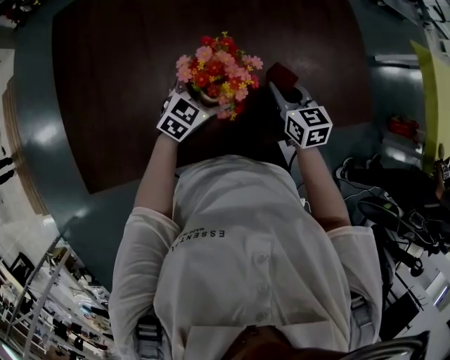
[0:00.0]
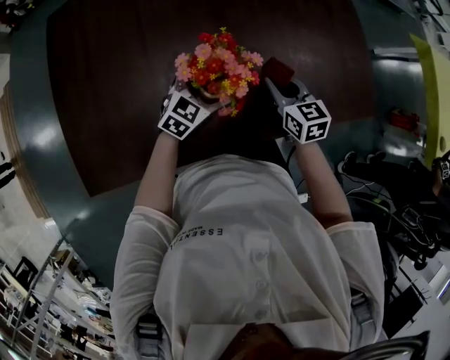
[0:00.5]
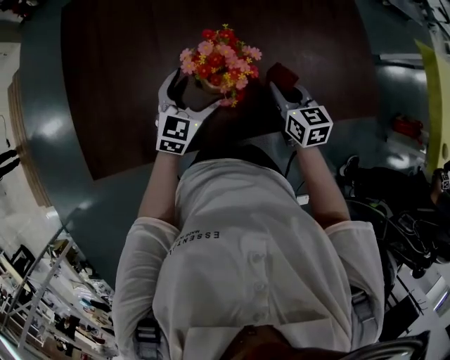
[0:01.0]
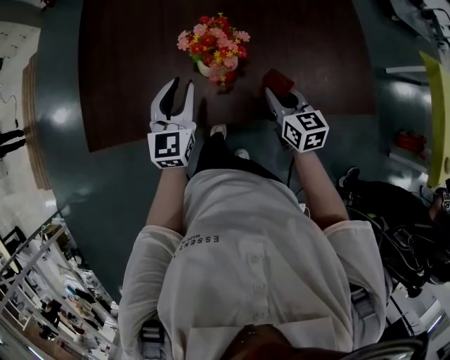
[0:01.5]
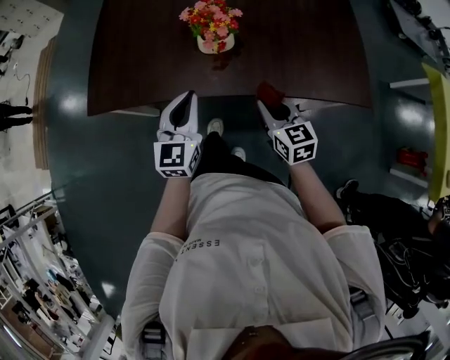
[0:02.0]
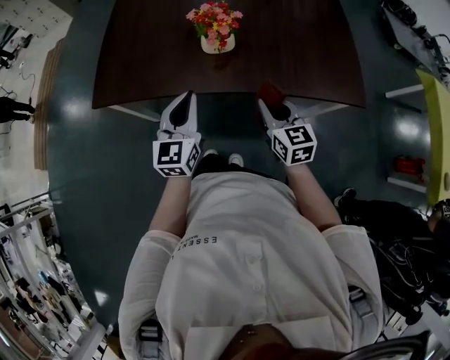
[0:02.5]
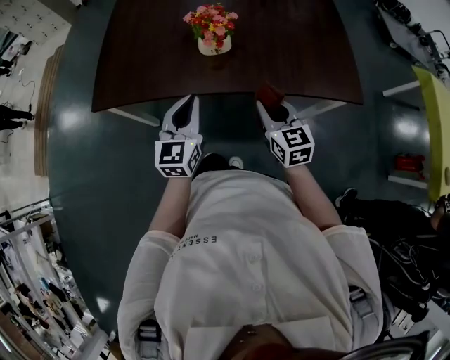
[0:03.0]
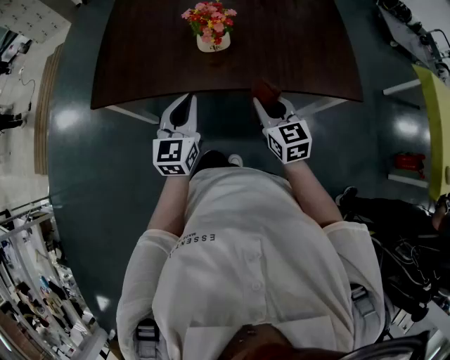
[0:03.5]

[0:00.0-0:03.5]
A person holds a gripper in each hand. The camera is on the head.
0:00.0 to 0:02.0: The left gripper moves roughly 25 cm, changes its angle by roughly 50 degrees, and closes its fingers, while the right gripper ends up approximately 20 cm from where it was.
0:02.0 to 0:03.5: The right gripper changes place by some 5 cm. The left gripper heads backward, covering about 5 cm.

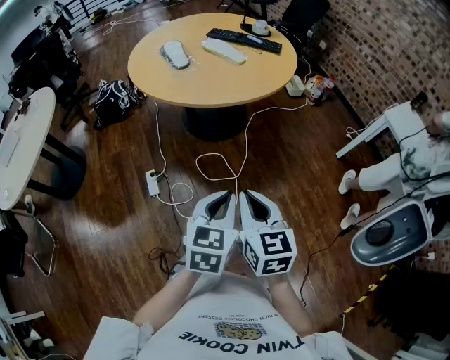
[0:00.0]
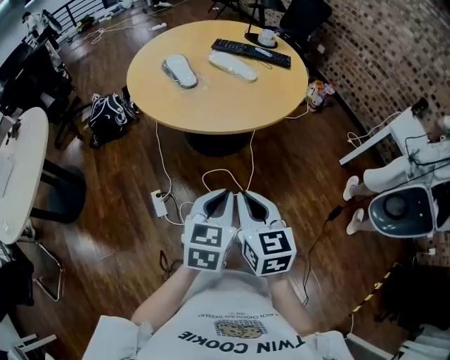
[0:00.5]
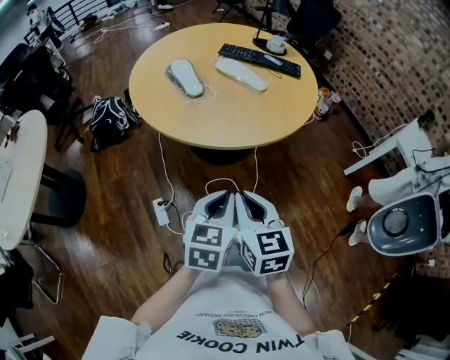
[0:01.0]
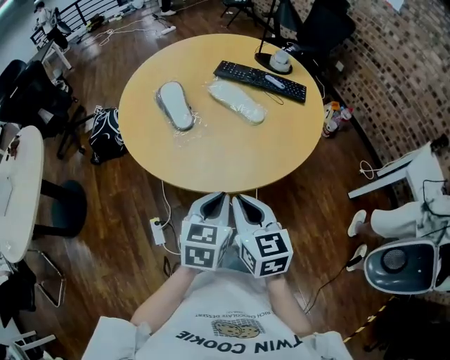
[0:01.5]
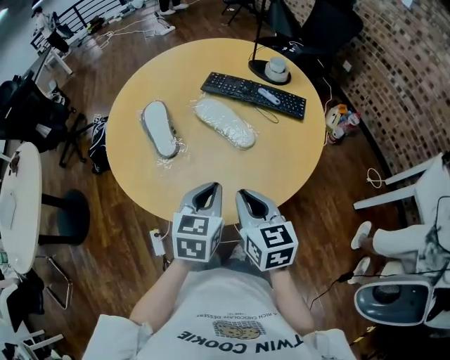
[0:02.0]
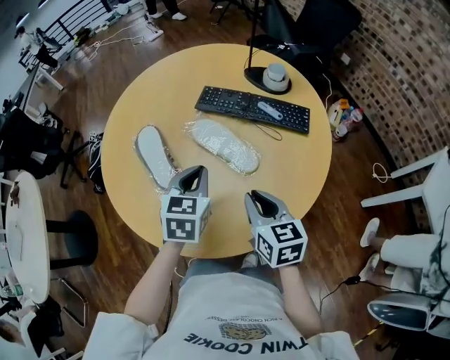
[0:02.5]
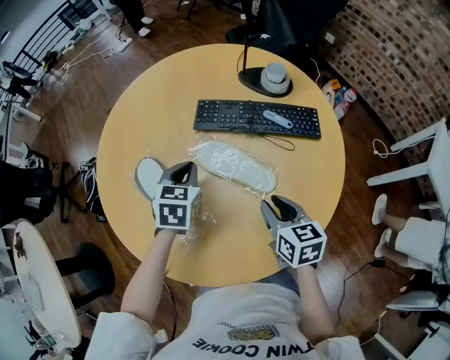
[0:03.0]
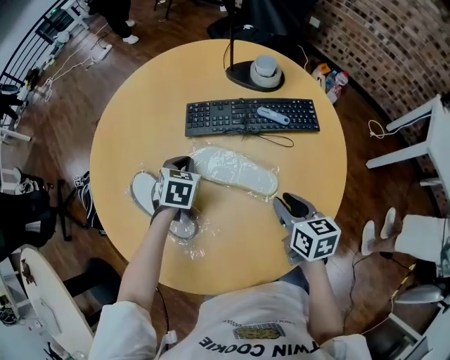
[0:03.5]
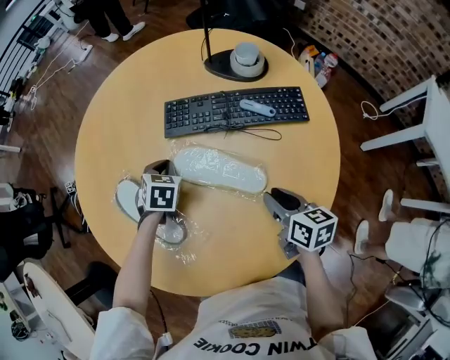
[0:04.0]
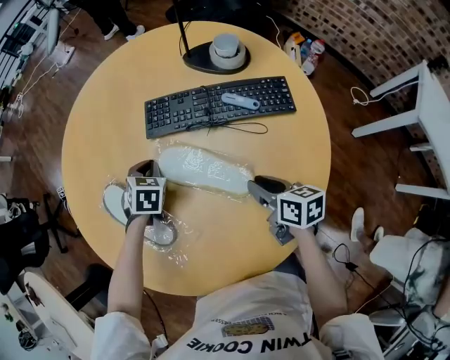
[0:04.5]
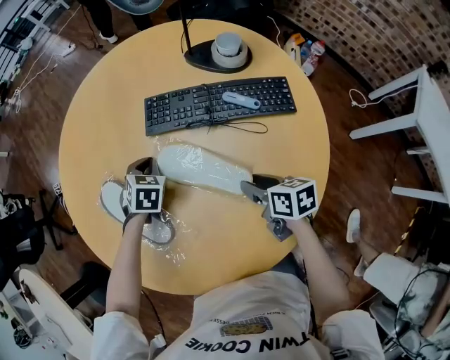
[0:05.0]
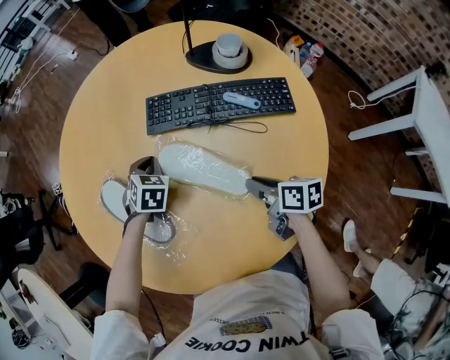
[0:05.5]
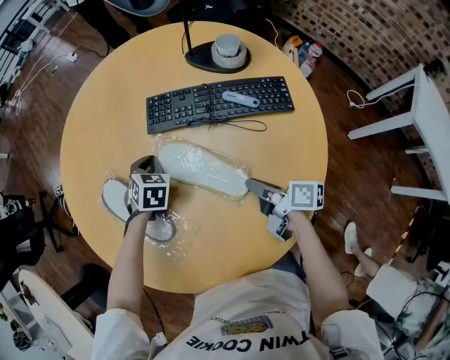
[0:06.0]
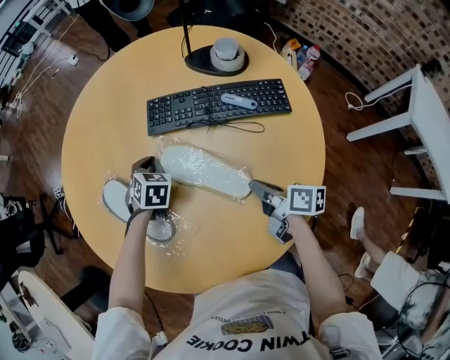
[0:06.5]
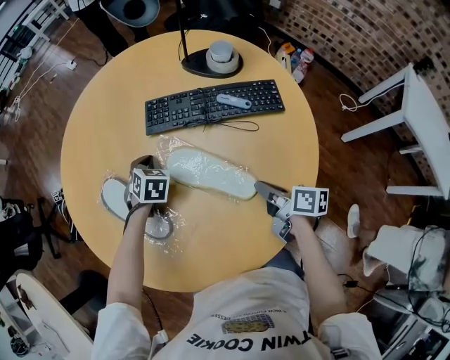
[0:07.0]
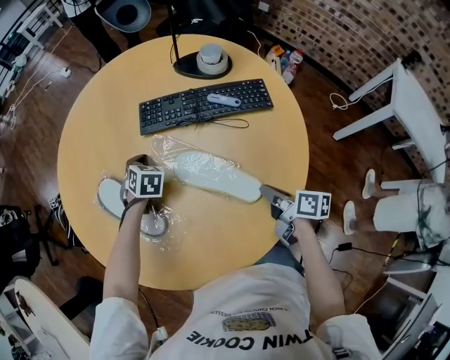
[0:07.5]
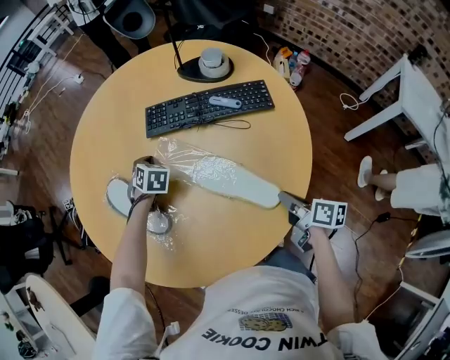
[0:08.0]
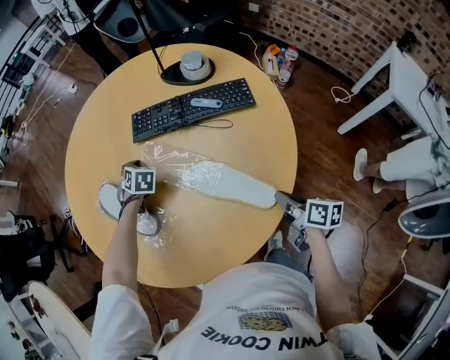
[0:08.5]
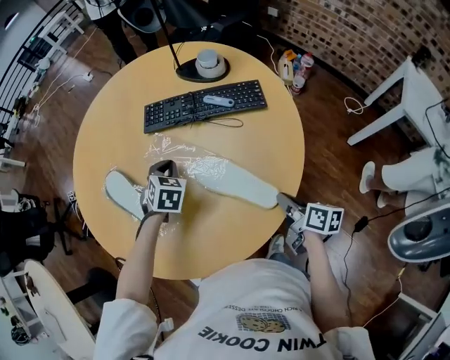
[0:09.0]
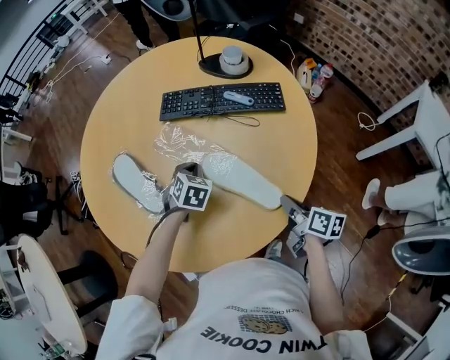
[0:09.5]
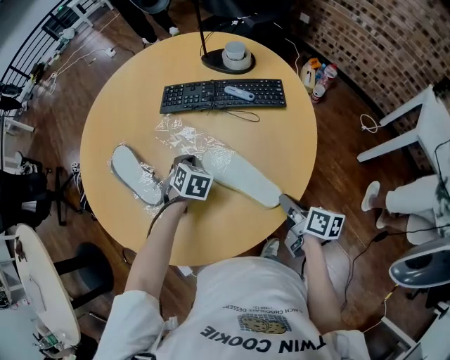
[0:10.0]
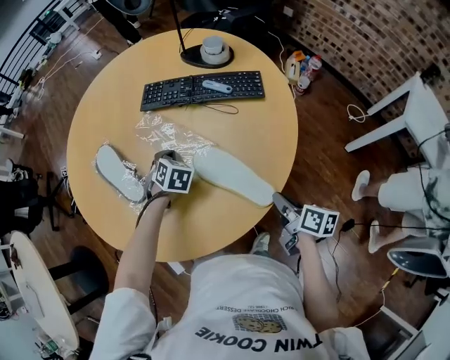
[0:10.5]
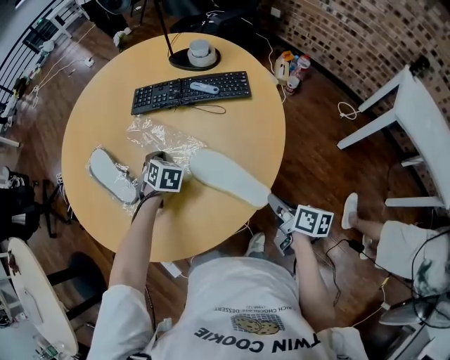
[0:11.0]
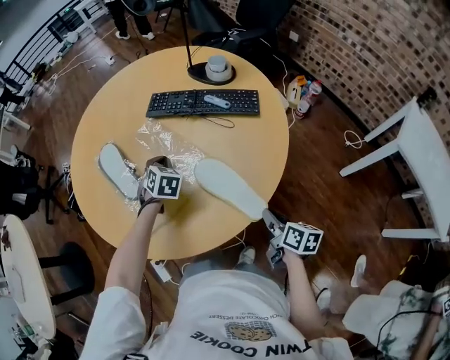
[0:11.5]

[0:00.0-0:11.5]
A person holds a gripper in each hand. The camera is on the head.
0:00.0 to 0:02.0: Both grippers are carried forward, approximately 50 cm.
0:02.0 to 0:04.0: The left gripper travels forward and downward by approximately 40 cm, and changes its angle by approximately 40 degrees, while the right gripper shifts some 25 cm forward and downward, rotates approximately 30 degrees, and opens up.
0:04.0 to 0:06.0: The right gripper swivels roughly 40 degrees.
0:06.0 to 0:07.5: The right gripper goes approximately 10 cm backward.
0:07.5 to 0:09.5: The right gripper travels backward by roughly 5 cm; the left gripper travels backward and to the right by some 15 cm.
0:09.5 to 0:11.5: The right gripper travels backward by approximately 10 cm.

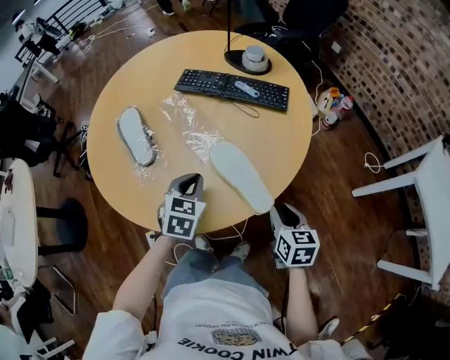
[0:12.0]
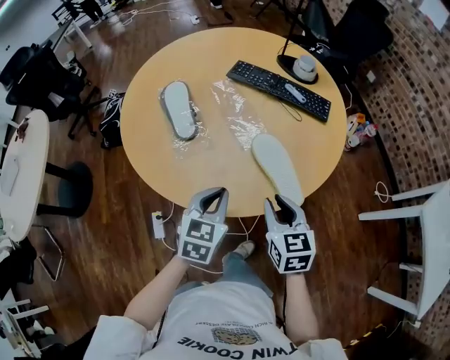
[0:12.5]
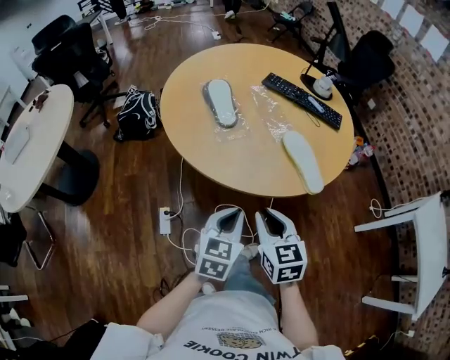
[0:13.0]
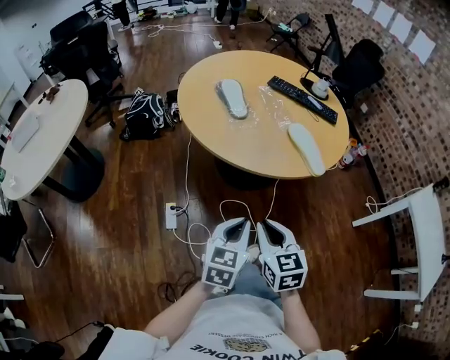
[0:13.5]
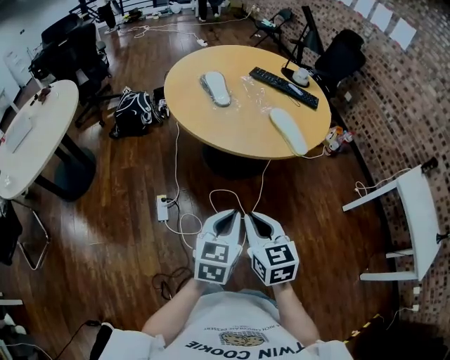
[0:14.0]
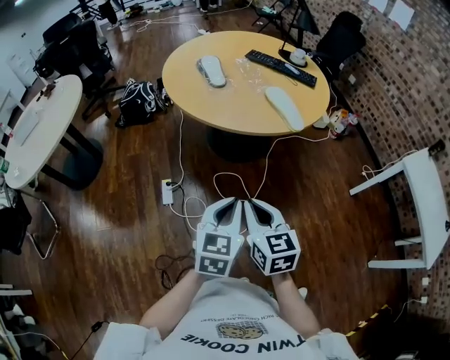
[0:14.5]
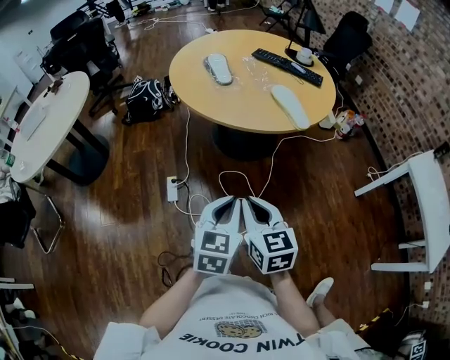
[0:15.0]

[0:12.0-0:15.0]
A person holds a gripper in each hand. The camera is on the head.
0:12.0 to 0:13.5: The pair of grippers is taken backward and to the left, about 40 cm. The left gripper changes its angle by about 30 degrees, while the right gripper turns by roughly 30 degrees.
0:13.5 to 0:15.0: The two grippers go about 15 cm backward.

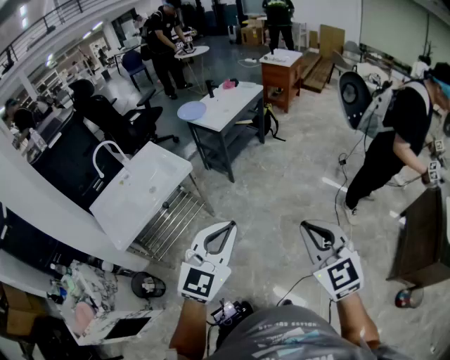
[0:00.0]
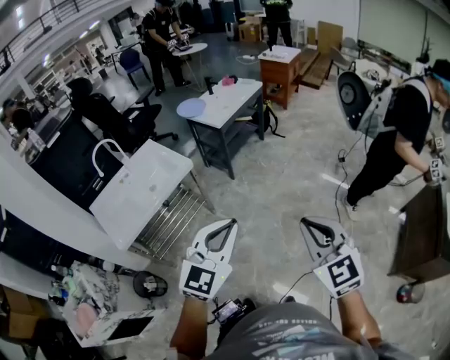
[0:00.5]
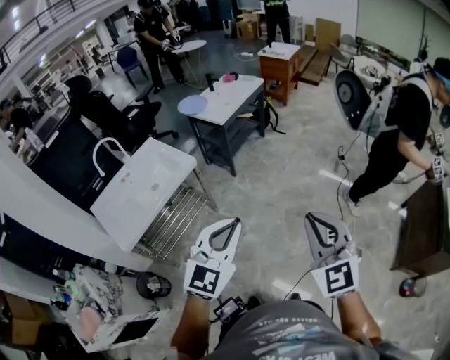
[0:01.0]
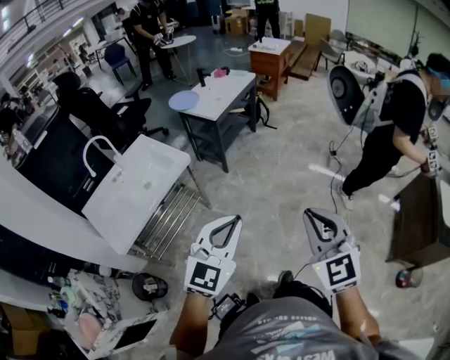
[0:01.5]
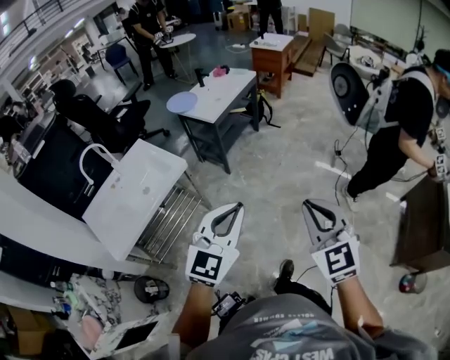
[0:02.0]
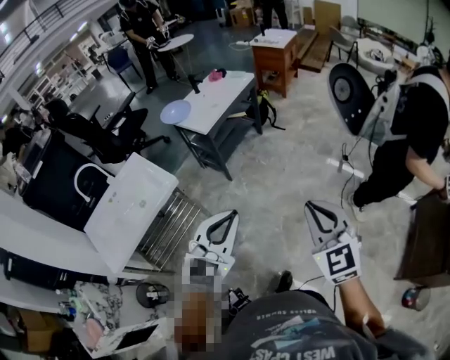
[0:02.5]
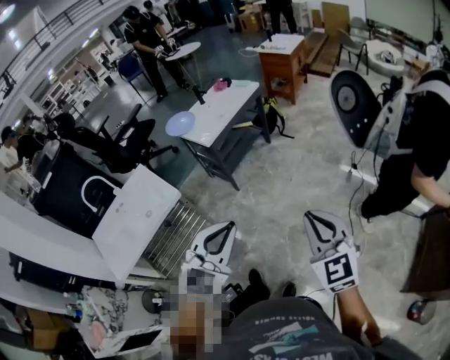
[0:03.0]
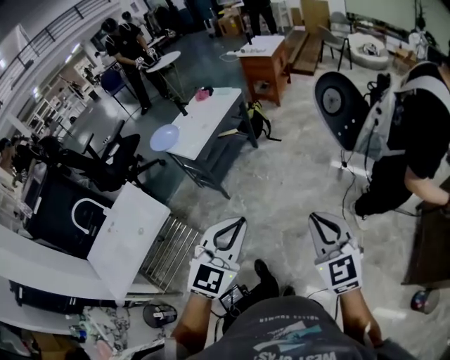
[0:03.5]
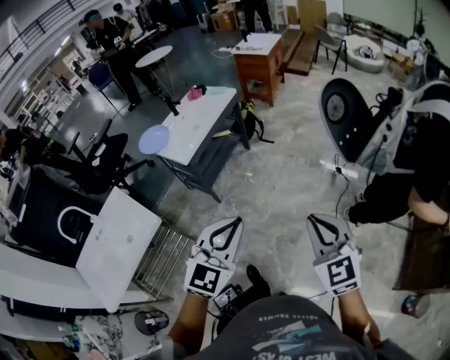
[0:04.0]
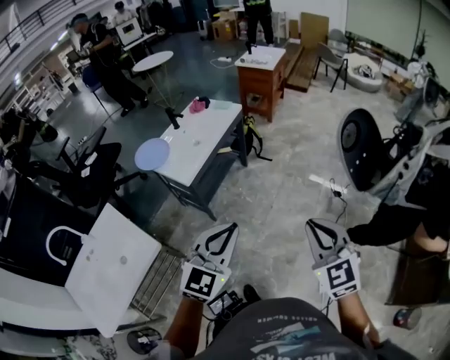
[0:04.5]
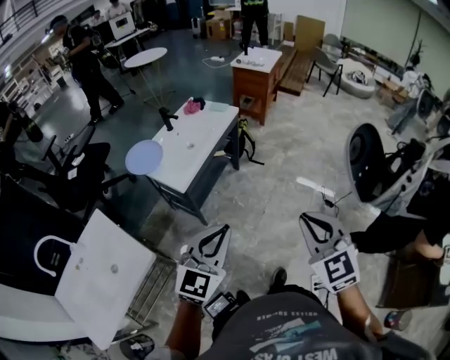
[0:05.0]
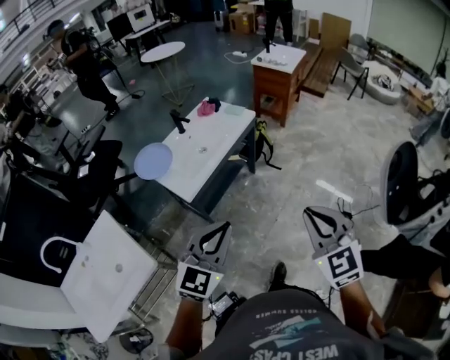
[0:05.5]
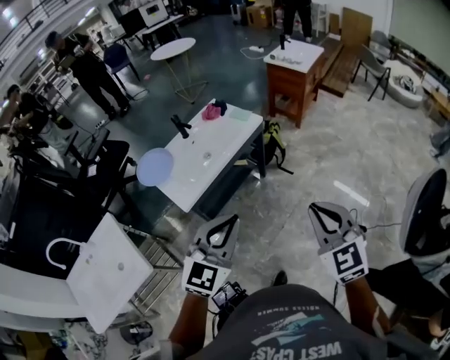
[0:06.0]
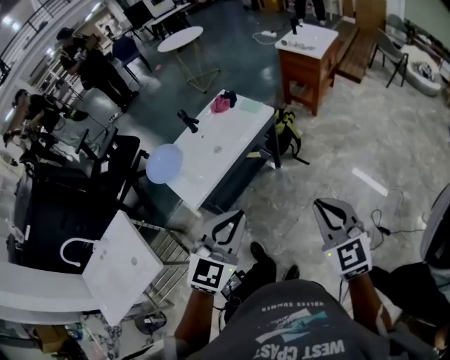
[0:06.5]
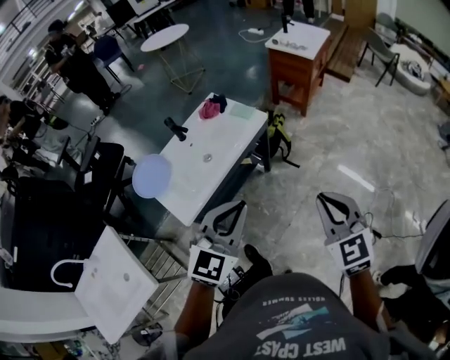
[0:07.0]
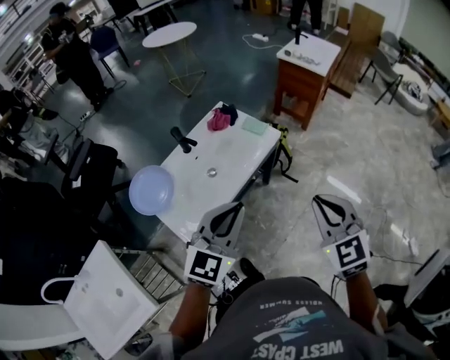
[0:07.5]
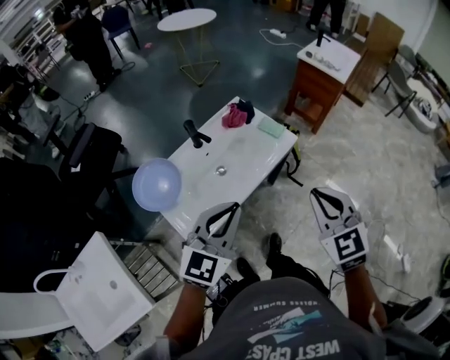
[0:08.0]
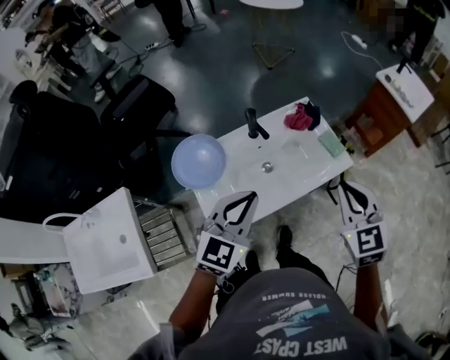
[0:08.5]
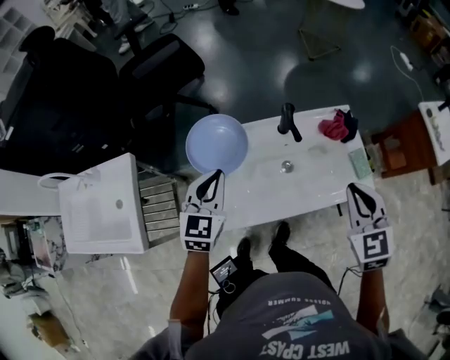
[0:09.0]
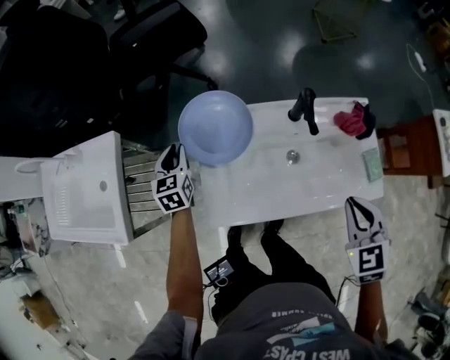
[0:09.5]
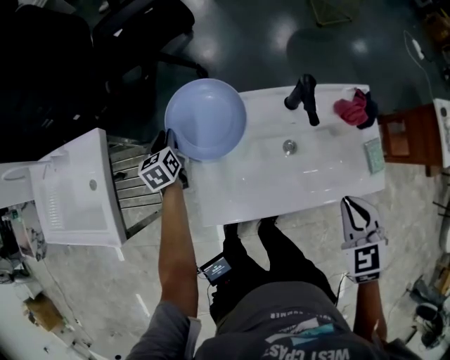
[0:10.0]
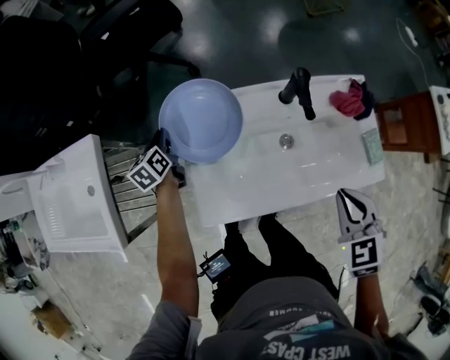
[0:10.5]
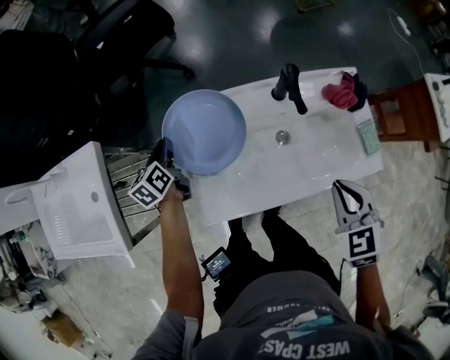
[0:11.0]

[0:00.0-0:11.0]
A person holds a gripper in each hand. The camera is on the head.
0:00.0 to 0:02.0: The two grippers go approximately 10 cm forward.
0:02.0 to 0:03.5: The grippers both shift forward and to the right by some 25 cm.
0:03.5 to 0:05.5: The grippers both shift forward and to the left by about 40 cm.
0:05.5 to 0:07.5: The two grippers go some 35 cm forward.
0:07.5 to 0:09.0: The left gripper shifts by some 35 cm, and changes its angle by roughly 60 degrees. The right gripper ends up approximately 35 cm from where it was, and rotates roughly 30 degrees.
0:09.0 to 0:11.0: The right gripper travels downward by about 10 cm; the left gripper heads downward, to the left and forward, covering some 25 cm, and rotates around the line of its fingers by roughly 40 degrees, counterclockwise from behind.
